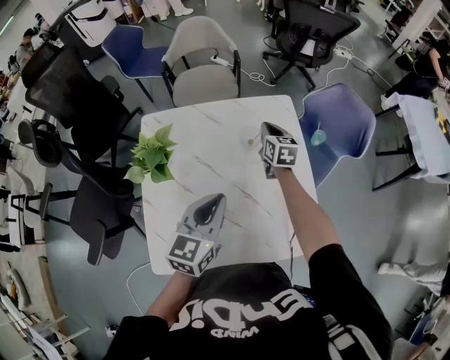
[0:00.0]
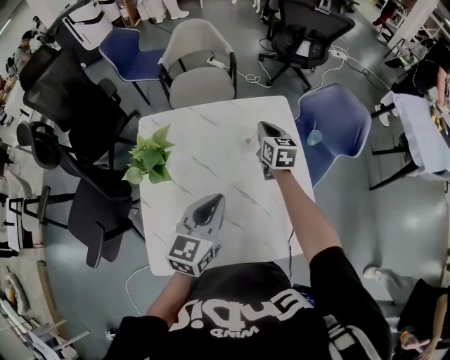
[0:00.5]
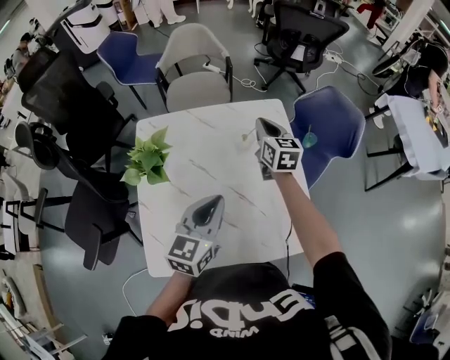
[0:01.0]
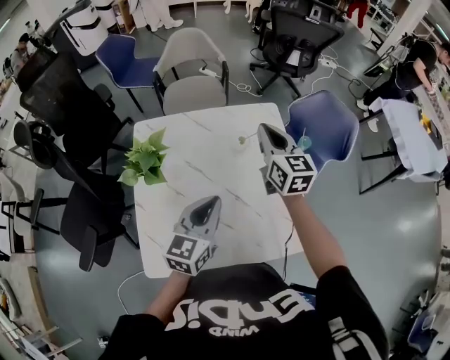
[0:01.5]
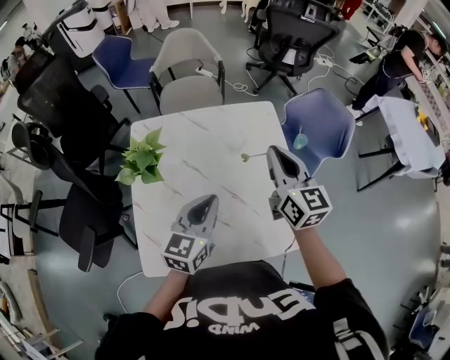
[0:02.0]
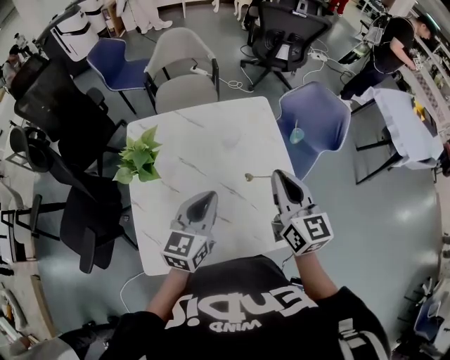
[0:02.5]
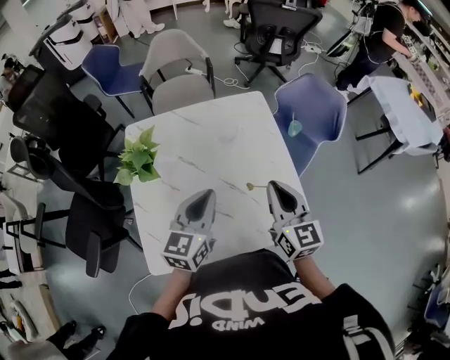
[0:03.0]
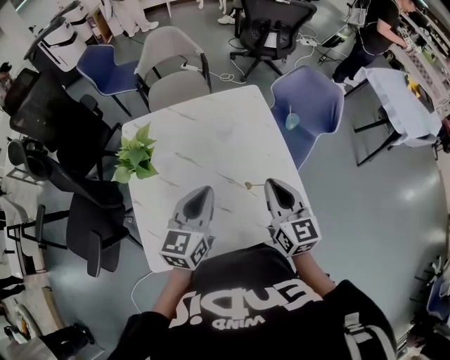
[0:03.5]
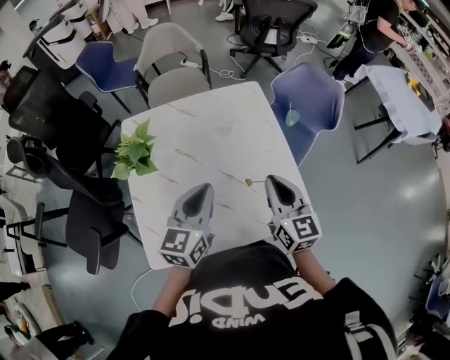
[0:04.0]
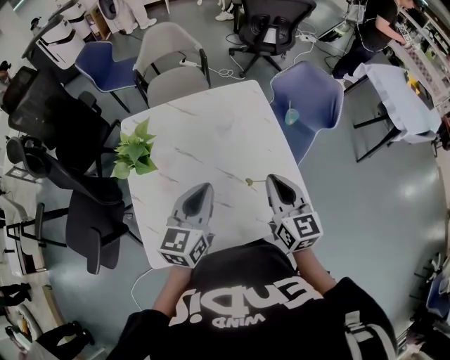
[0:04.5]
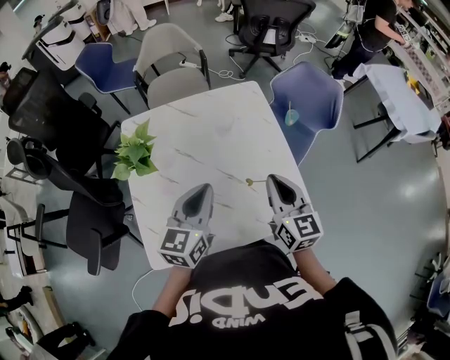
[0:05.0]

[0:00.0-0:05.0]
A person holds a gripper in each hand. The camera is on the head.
0:00.0 to 0:02.5: The right gripper shifts approximately 30 cm backward and upward, and turns by roughly 20 degrees.
0:02.5 to 0:05.0: The right gripper heads downward, covering approximately 5 cm.

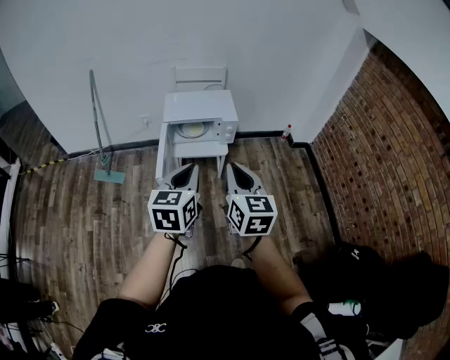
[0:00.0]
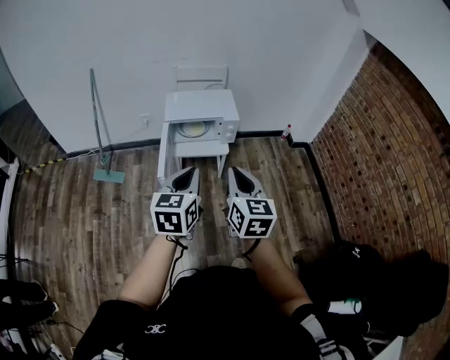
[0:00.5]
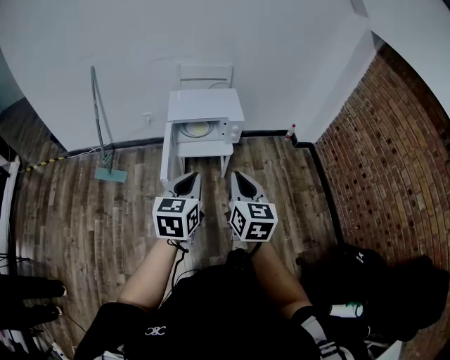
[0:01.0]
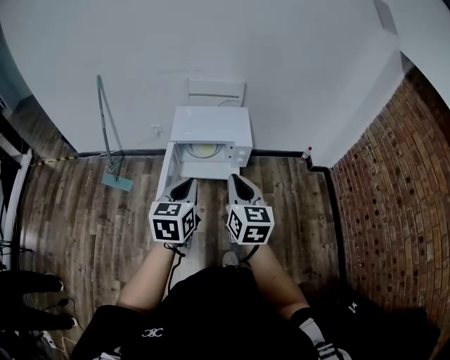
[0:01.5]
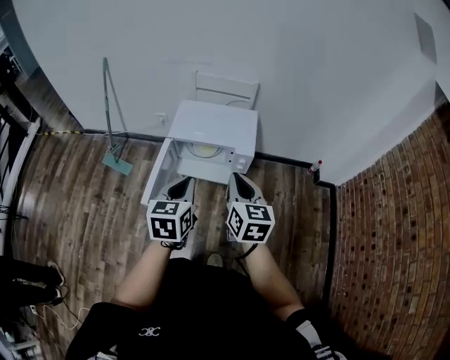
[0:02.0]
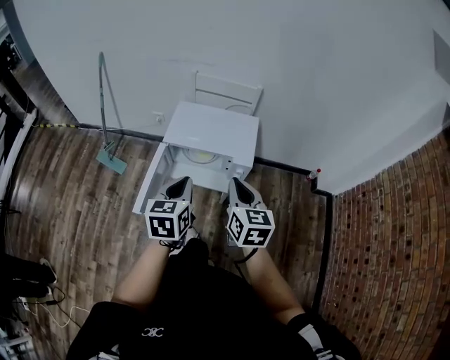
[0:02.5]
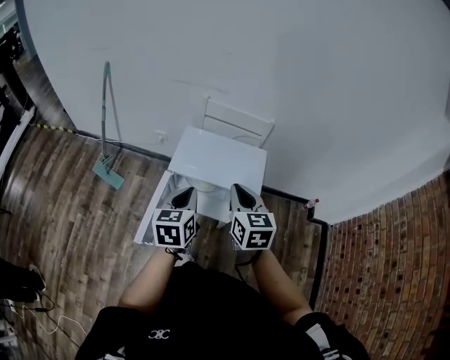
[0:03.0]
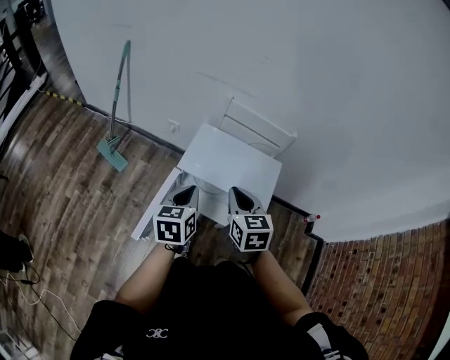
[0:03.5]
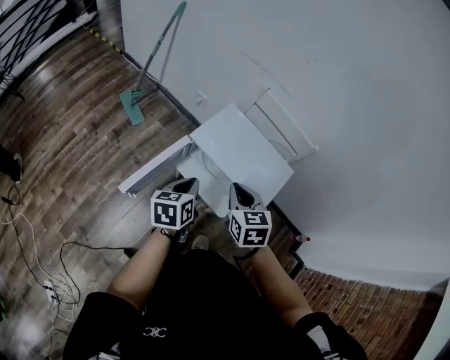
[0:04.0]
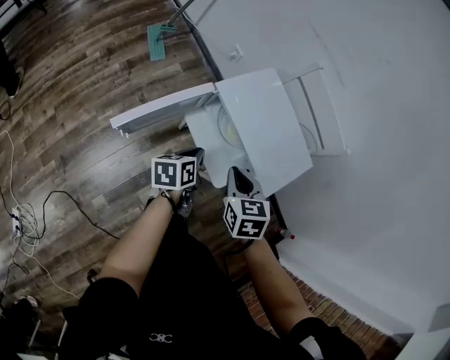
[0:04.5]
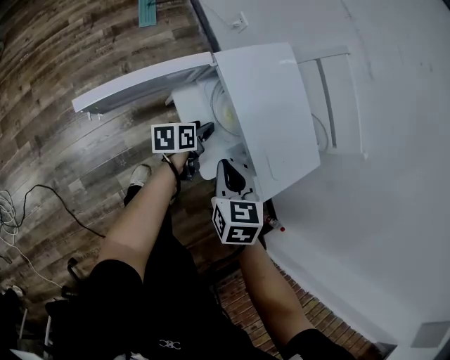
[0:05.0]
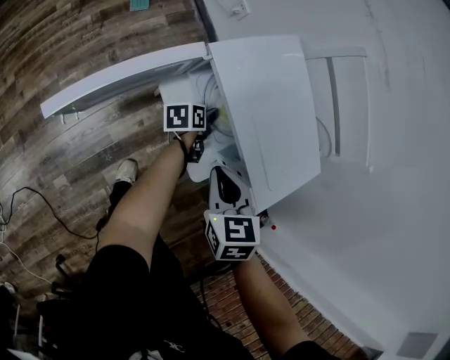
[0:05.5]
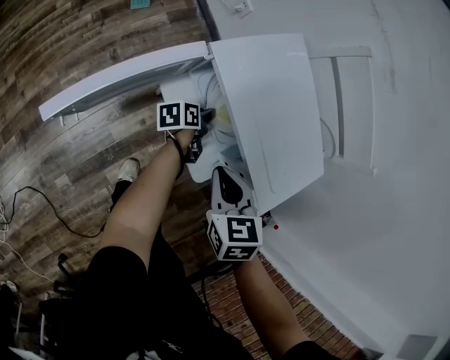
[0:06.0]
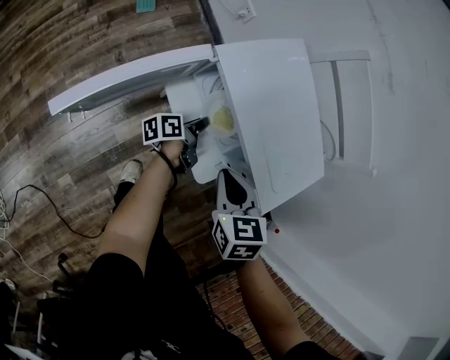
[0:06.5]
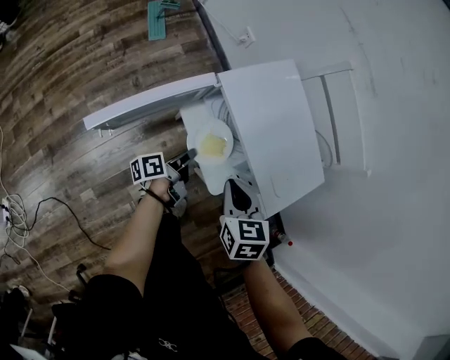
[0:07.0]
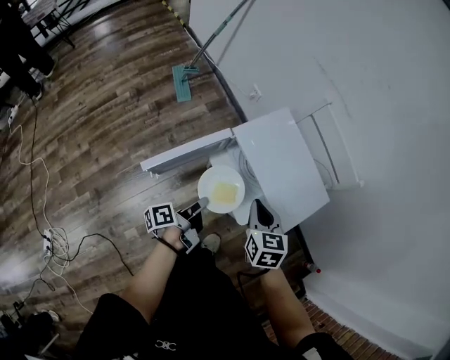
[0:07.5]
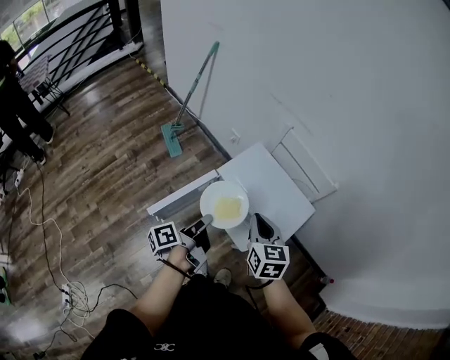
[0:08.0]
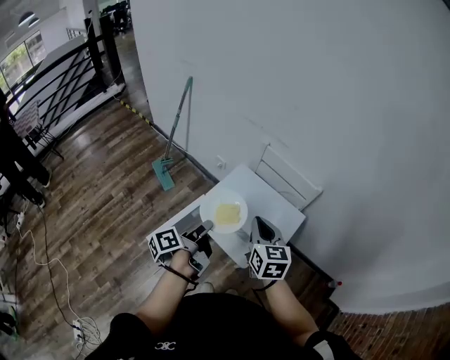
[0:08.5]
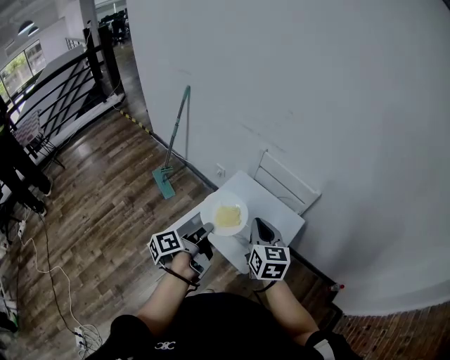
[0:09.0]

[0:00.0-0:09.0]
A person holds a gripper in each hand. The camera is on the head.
0:00.0 to 0:02.0: The two grippers go about 25 cm forward.
0:02.0 to 0:04.5: The two grippers go about 25 cm downward. The right gripper swivels some 60 degrees; the left gripper rotates around the line of its fingers by approximately 50 degrees, counterclockwise from behind.
0:04.5 to 0:07.0: The left gripper shifts about 15 cm downward, swivels some 40 degrees, and opens and closes again. The right gripper shifts roughly 10 cm downward.
0:07.0 to 0:09.0: Both grippers travel together upward, about 35 cm. The right gripper angles its fingers upward, by some 30 degrees.

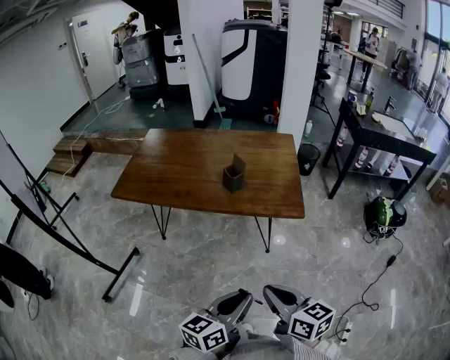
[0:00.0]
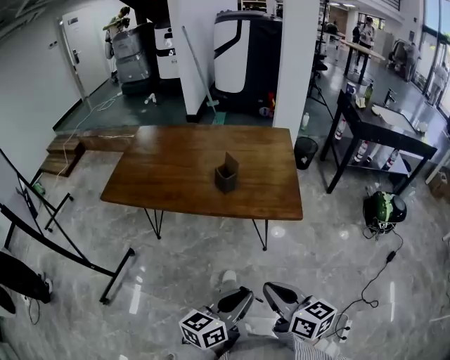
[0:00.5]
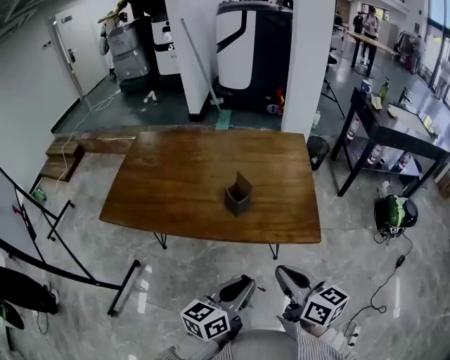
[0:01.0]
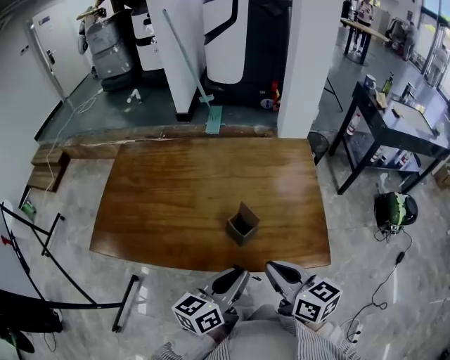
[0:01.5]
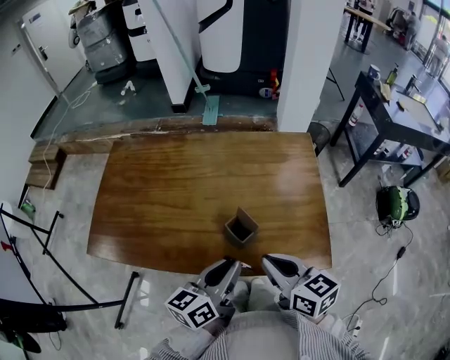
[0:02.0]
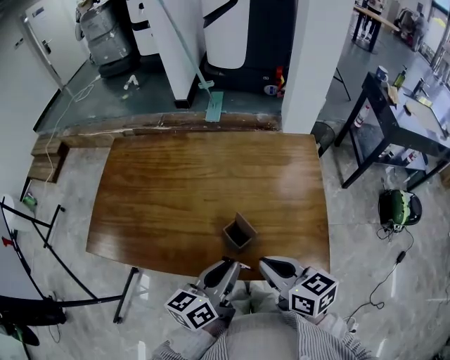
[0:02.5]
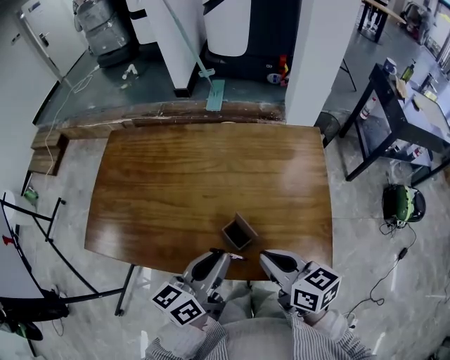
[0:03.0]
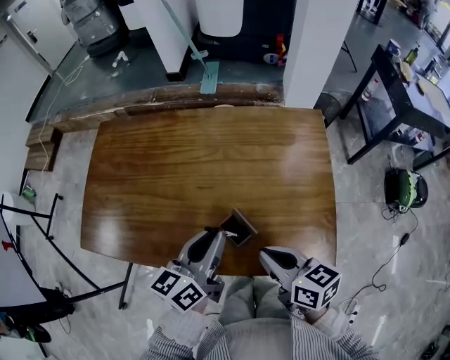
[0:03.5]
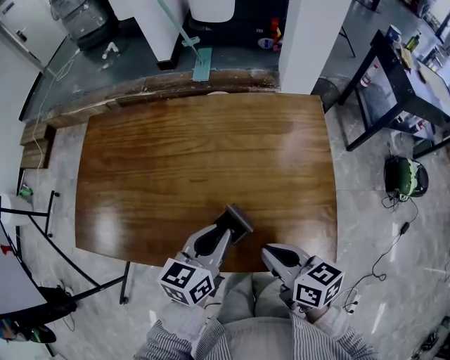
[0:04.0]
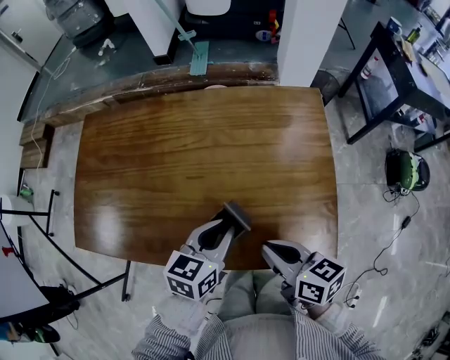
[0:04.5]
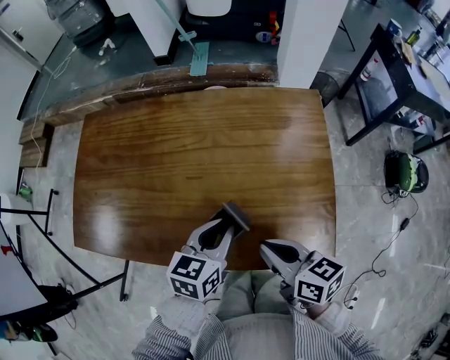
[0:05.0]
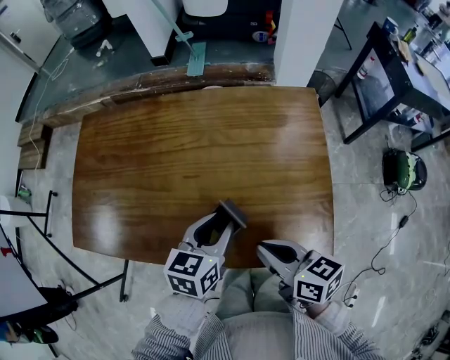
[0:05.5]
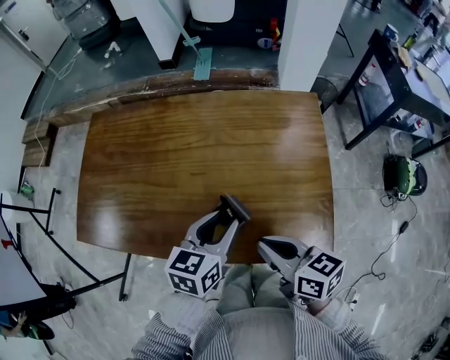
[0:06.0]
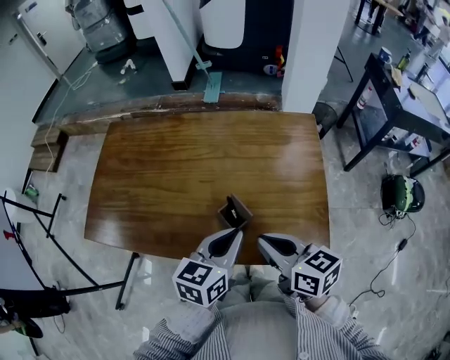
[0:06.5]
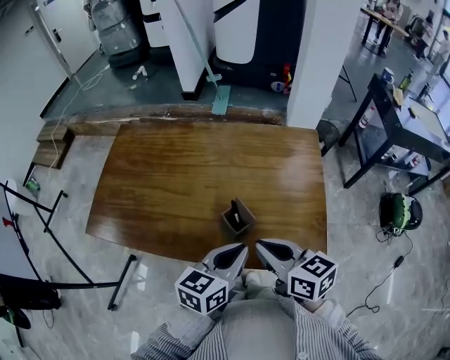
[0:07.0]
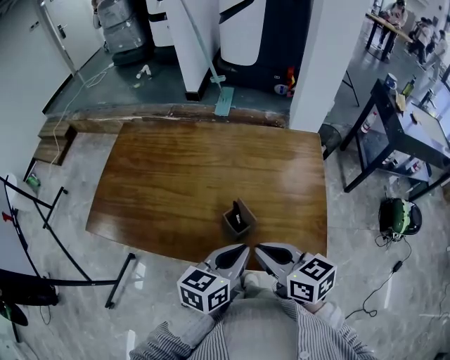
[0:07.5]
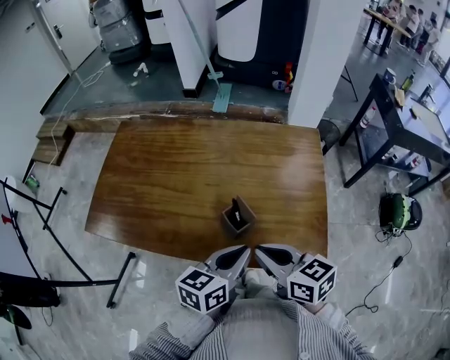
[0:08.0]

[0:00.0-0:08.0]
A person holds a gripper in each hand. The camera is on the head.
0:00.0 to 0:02.0: The two grippers travel together, forward, roughly 40 cm.
0:02.0 to 0:04.0: The left gripper shifts about 10 cm forward and downward. The right gripper moves downward, about 5 cm.
0:04.0 to 0:06.0: The left gripper opens its fingers.
0:06.0 to 0:08.0: The left gripper heads backward, covering some 10 cm, and closes. Meanwhile the right gripper changes place by roughly 5 cm.

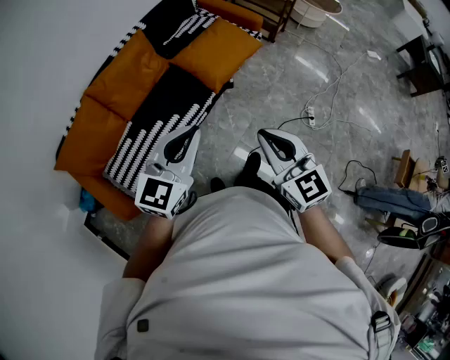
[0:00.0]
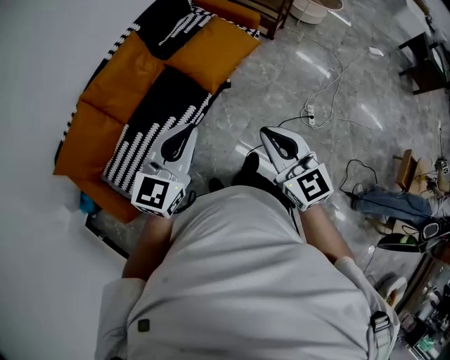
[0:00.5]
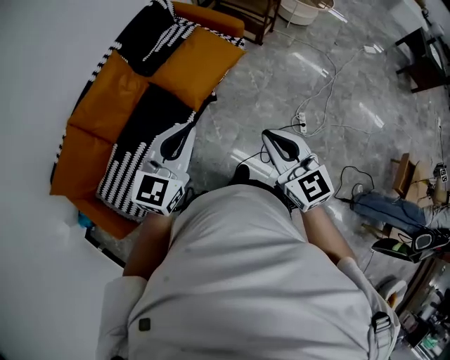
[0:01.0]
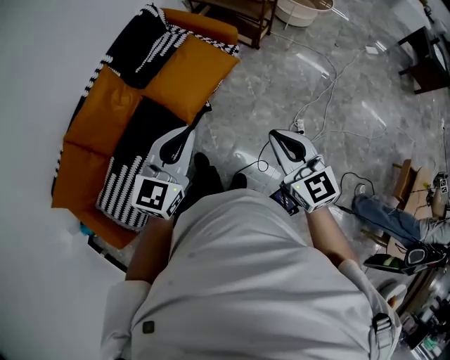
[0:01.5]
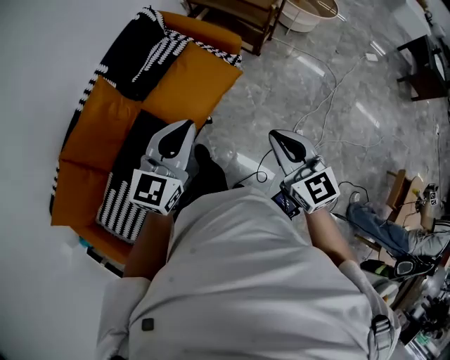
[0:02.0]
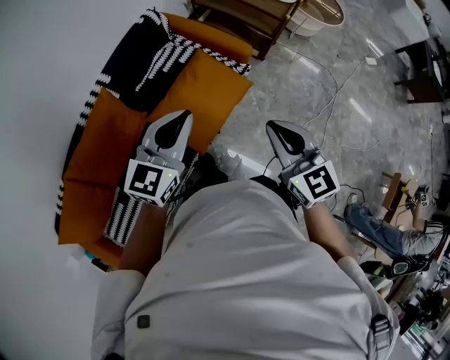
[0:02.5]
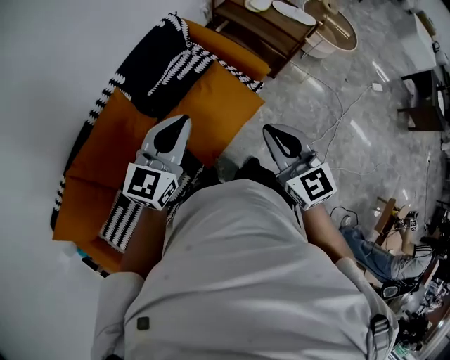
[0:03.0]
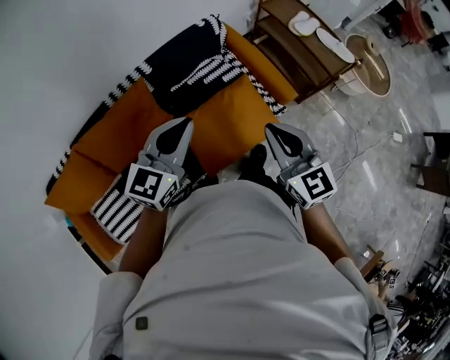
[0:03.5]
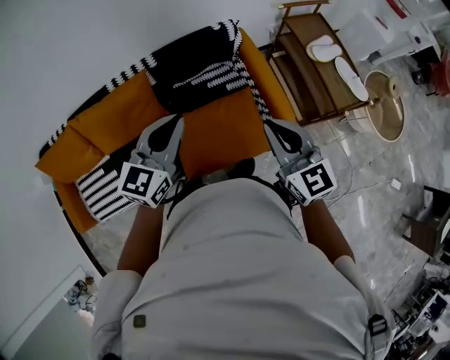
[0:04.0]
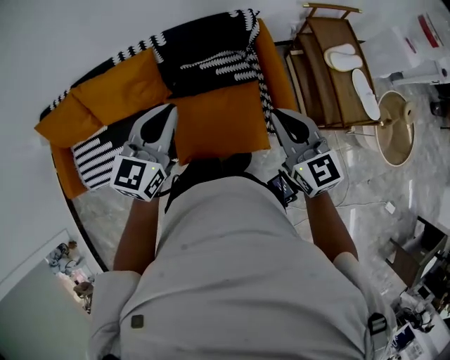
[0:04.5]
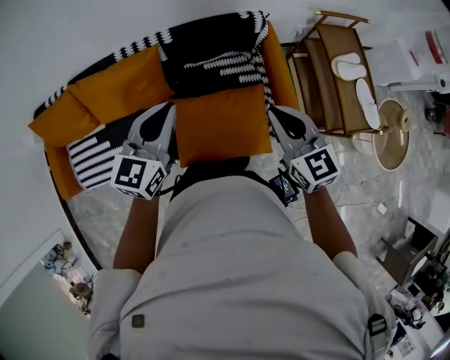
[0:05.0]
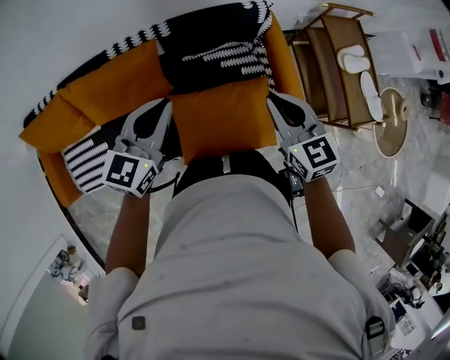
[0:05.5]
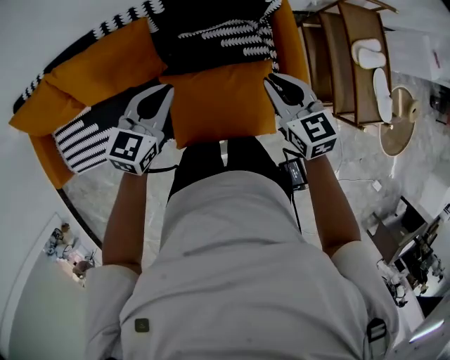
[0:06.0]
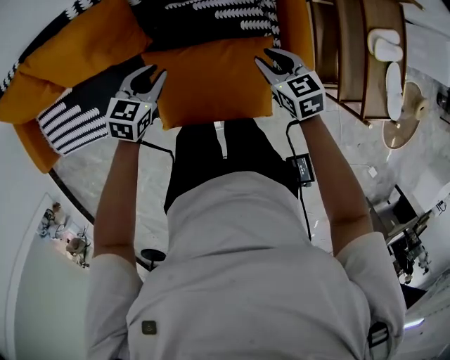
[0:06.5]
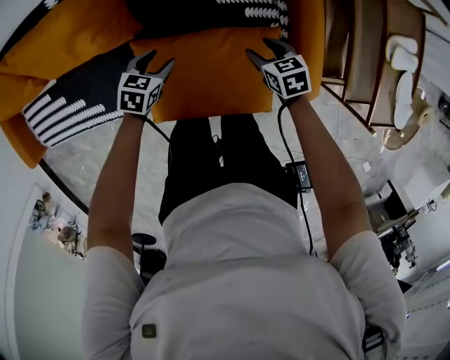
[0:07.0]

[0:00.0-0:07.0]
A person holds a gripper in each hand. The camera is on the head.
0:00.0 to 0:02.0: The grippers both shift forward and to the right by some 40 cm.
0:02.0 to 0:03.5: The grippers both shift forward and to the left by roughly 30 cm.
0:03.5 to 0:05.0: The left gripper shifts by about 10 cm, and changes its angle by some 30 degrees. Meanwhile the right gripper moves approximately 20 cm, and swivels roughly 30 degrees.
0:05.0 to 0:07.0: The two grippers go approximately 50 cm downward. The right gripper tilts its fingers some 40 degrees downward, and opens up. Meanwhile the left gripper tips its fingers downward by approximately 40 degrees, and opens up.
